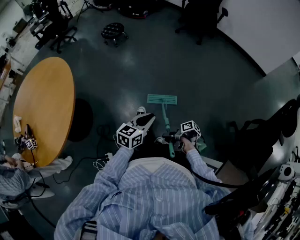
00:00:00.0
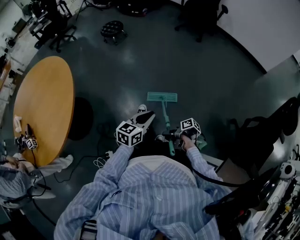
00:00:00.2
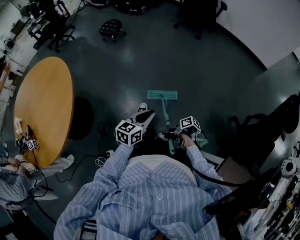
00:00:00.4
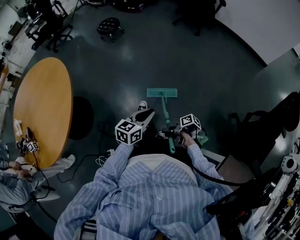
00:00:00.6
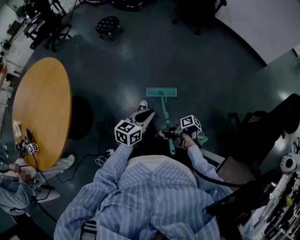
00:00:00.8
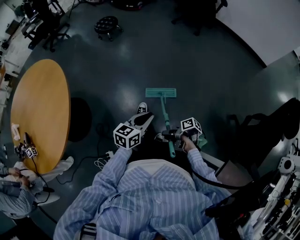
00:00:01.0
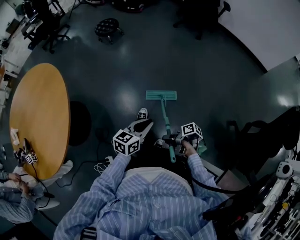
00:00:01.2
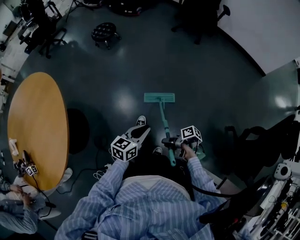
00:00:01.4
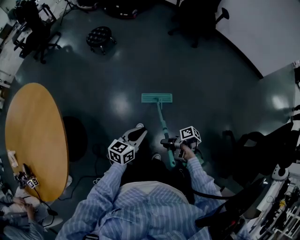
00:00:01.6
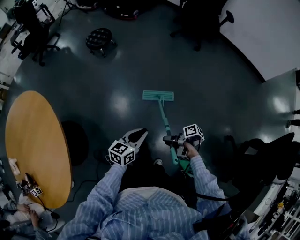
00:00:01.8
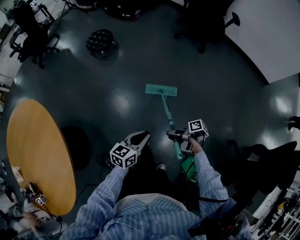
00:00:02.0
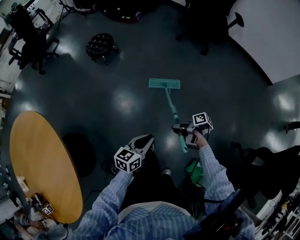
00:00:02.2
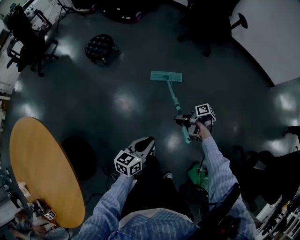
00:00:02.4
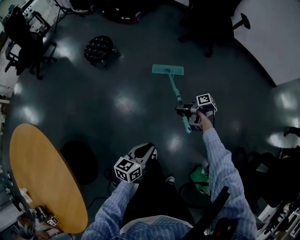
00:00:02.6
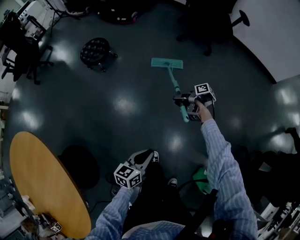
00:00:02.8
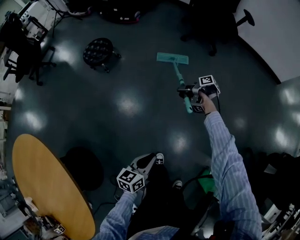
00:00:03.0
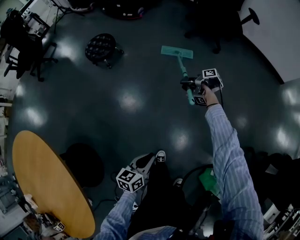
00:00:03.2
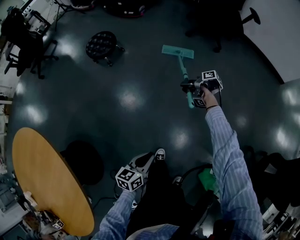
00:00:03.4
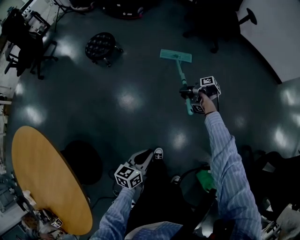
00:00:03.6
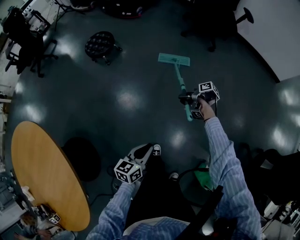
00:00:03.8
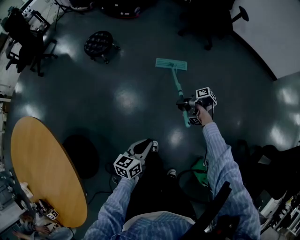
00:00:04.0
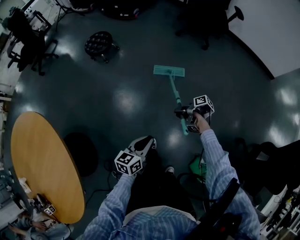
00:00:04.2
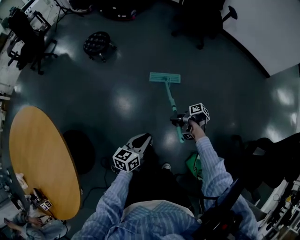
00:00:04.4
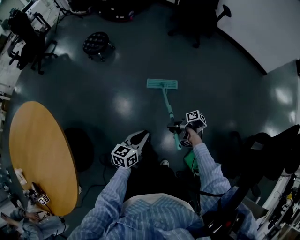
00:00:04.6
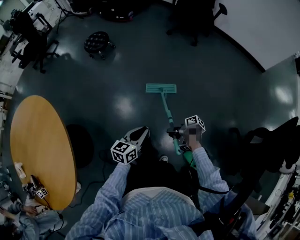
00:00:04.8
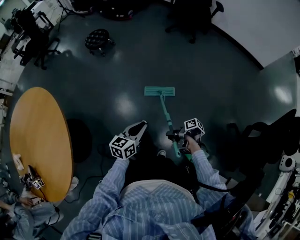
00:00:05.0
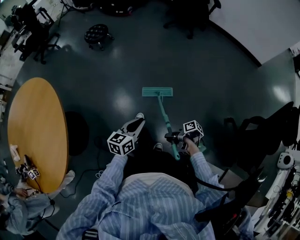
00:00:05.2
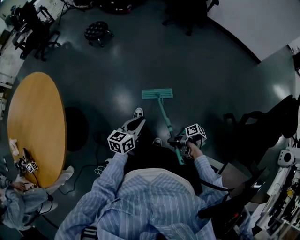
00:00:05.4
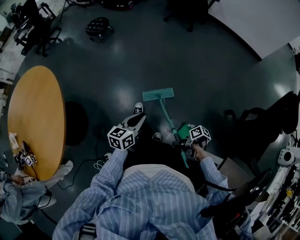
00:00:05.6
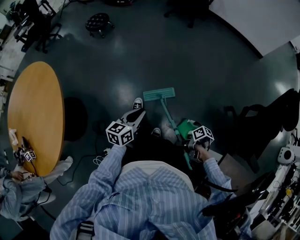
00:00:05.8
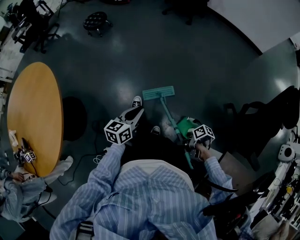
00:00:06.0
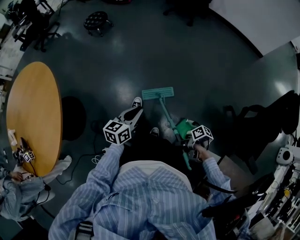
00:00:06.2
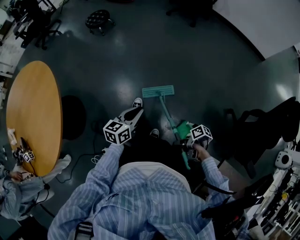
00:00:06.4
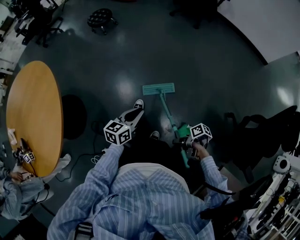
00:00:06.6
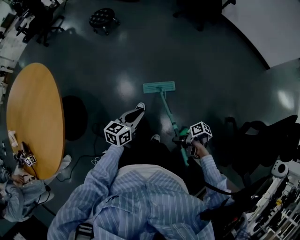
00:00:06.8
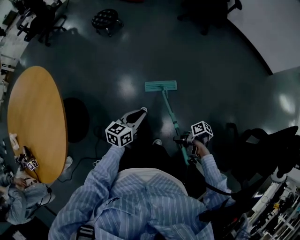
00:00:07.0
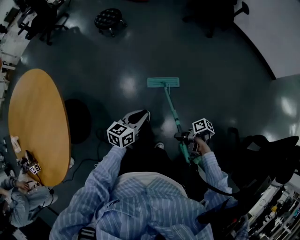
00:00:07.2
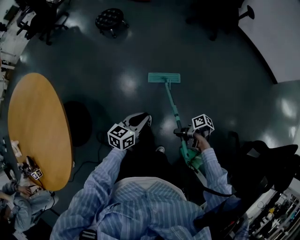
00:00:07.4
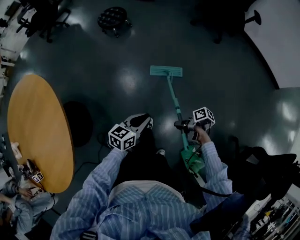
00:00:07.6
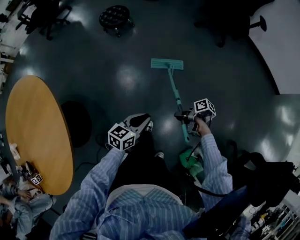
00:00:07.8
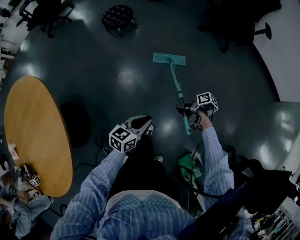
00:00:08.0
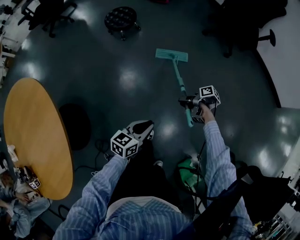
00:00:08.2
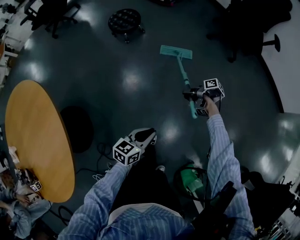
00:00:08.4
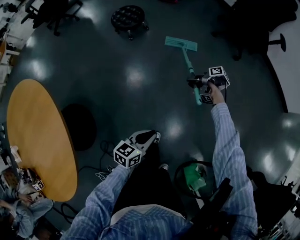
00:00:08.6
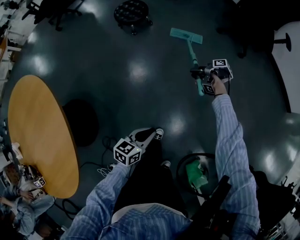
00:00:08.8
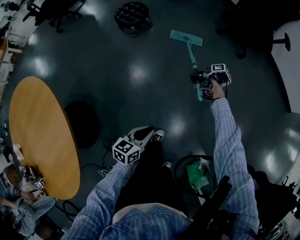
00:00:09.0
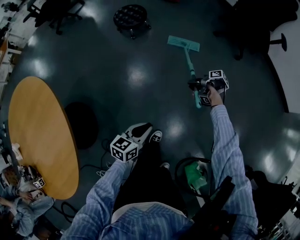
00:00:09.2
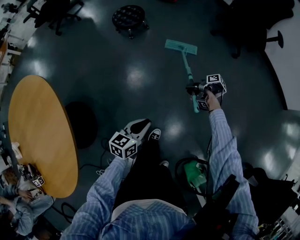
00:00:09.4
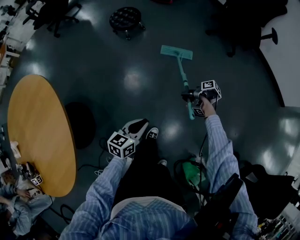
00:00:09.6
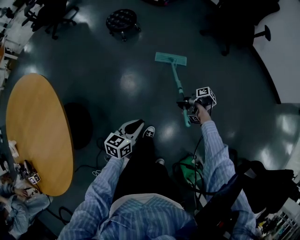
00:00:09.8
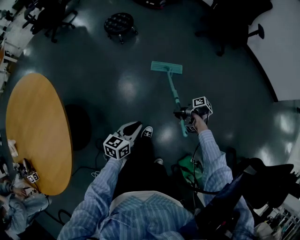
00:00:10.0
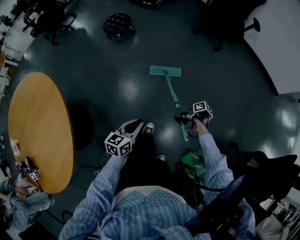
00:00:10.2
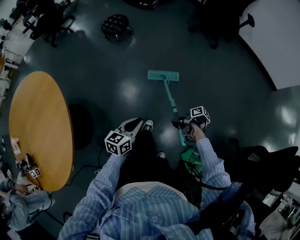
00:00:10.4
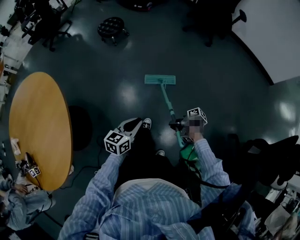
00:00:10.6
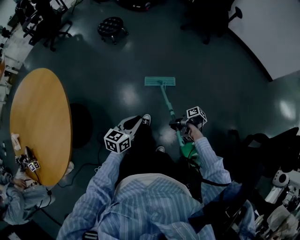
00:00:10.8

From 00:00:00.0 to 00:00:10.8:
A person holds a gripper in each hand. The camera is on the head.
From 00:00:00.0 to 00:00:01.6: The left gripper changes place by roughly 20 cm.
From 00:00:01.6 to 00:00:03.0: The left gripper changes place by roughly 25 cm.
From 00:00:03.0 to 00:00:04.6: The left gripper moves roughly 20 cm.
From 00:00:04.6 to 00:00:06.2: The left gripper moves some 20 cm.
From 00:00:06.2 to 00:00:07.8: The left gripper ends up roughly 35 cm from where it was.
From 00:00:07.8 to 00:00:09.2: The left gripper shifts by some 10 cm.
From 00:00:09.2 to 00:00:10.8: The left gripper changes place by some 30 cm.

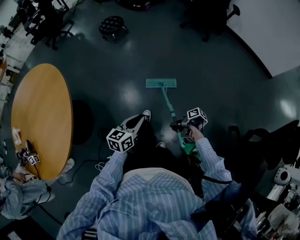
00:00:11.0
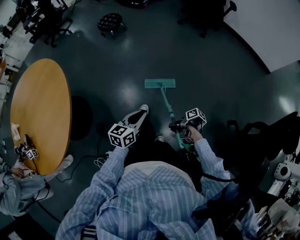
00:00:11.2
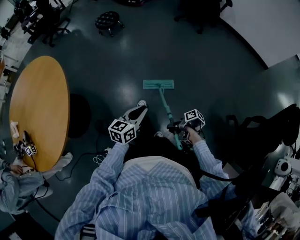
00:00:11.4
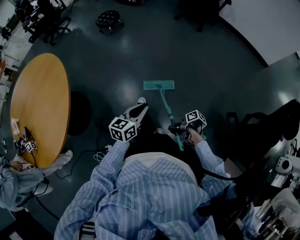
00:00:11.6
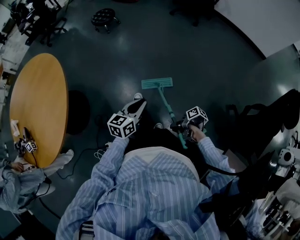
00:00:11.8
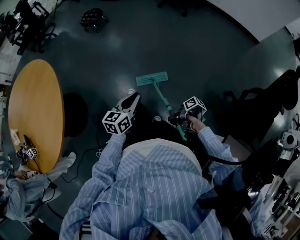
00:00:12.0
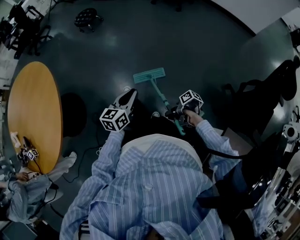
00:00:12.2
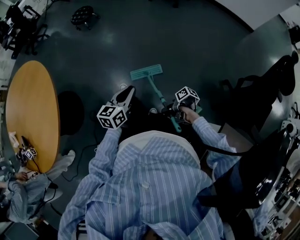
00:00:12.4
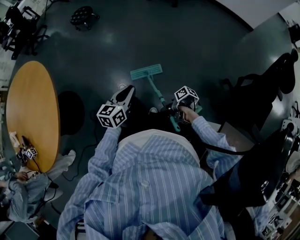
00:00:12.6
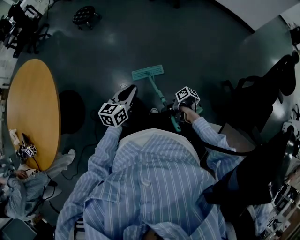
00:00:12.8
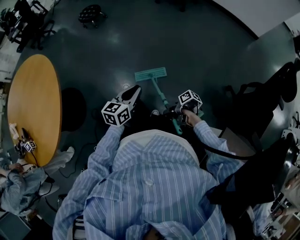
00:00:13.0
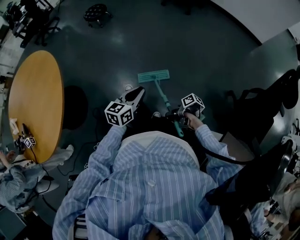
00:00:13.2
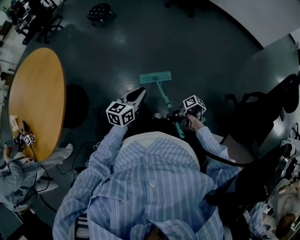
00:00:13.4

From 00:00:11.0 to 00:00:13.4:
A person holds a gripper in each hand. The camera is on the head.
From 00:00:11.0 to 00:00:12.2: The left gripper shifts by roughly 15 cm.

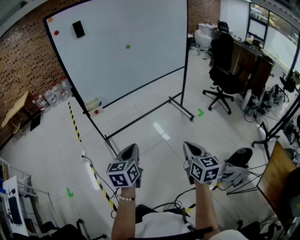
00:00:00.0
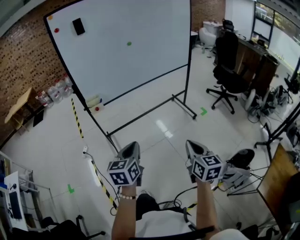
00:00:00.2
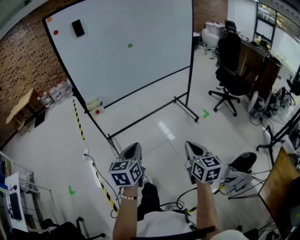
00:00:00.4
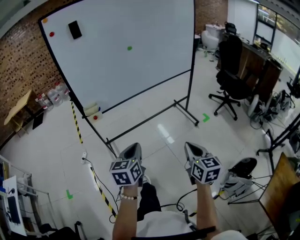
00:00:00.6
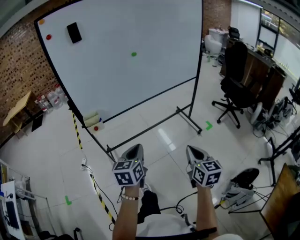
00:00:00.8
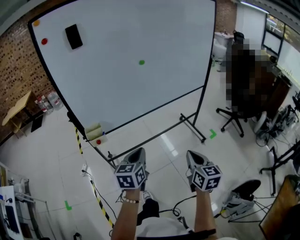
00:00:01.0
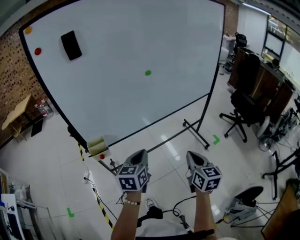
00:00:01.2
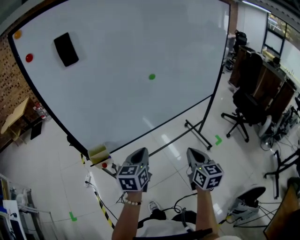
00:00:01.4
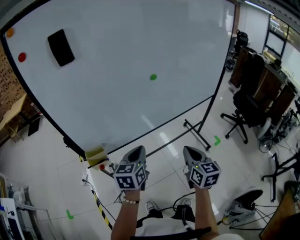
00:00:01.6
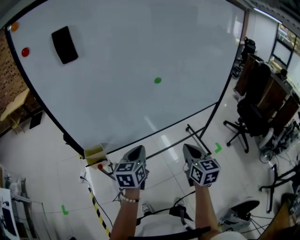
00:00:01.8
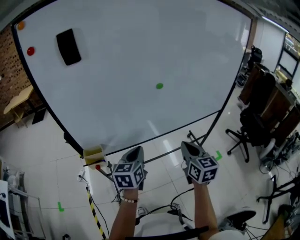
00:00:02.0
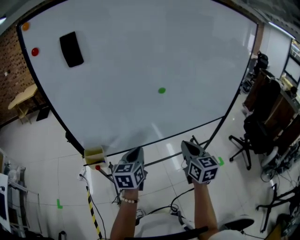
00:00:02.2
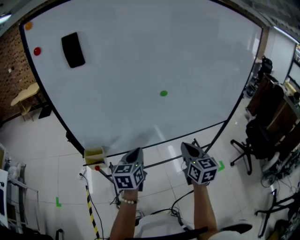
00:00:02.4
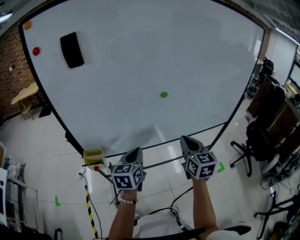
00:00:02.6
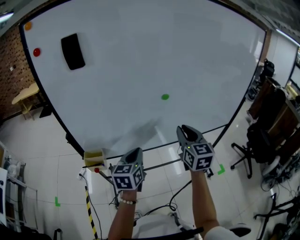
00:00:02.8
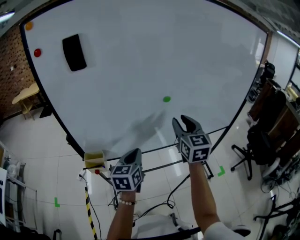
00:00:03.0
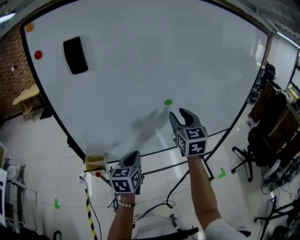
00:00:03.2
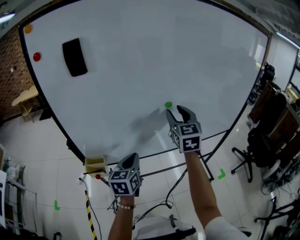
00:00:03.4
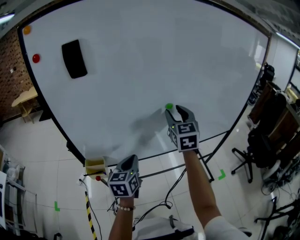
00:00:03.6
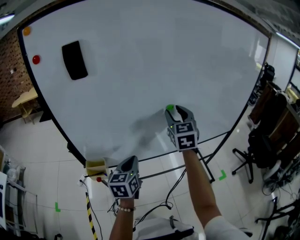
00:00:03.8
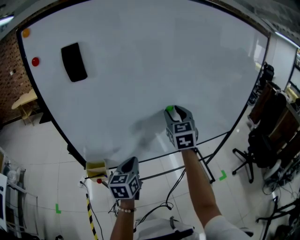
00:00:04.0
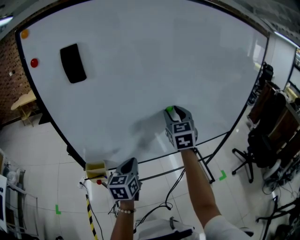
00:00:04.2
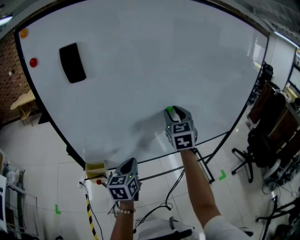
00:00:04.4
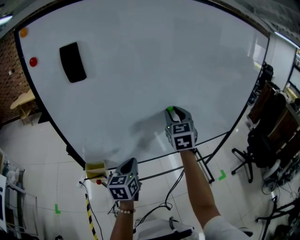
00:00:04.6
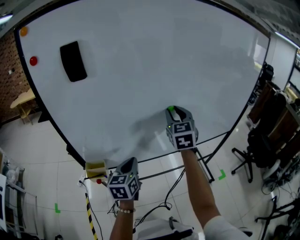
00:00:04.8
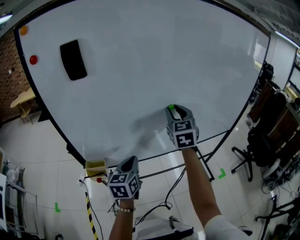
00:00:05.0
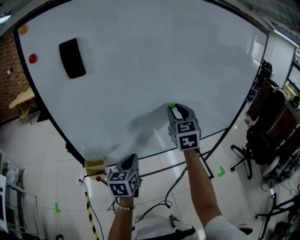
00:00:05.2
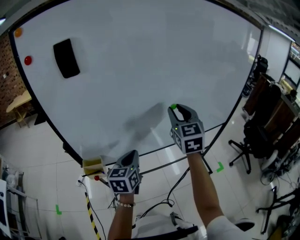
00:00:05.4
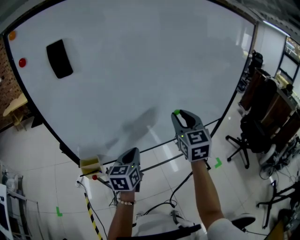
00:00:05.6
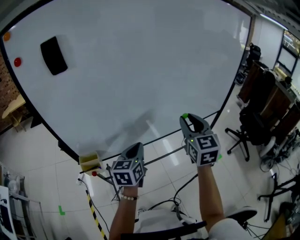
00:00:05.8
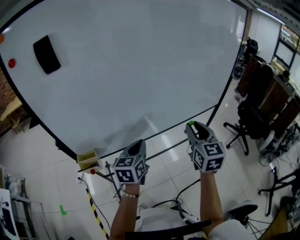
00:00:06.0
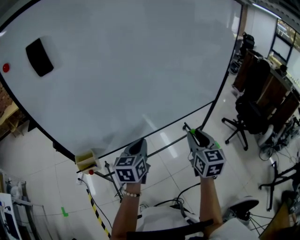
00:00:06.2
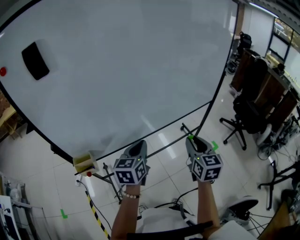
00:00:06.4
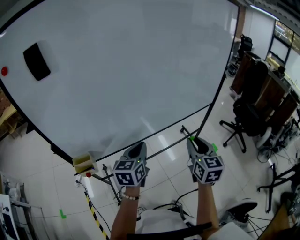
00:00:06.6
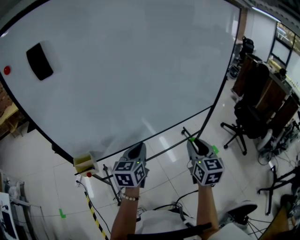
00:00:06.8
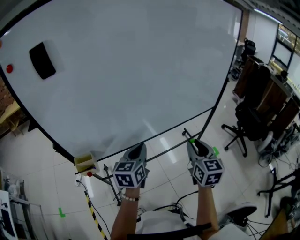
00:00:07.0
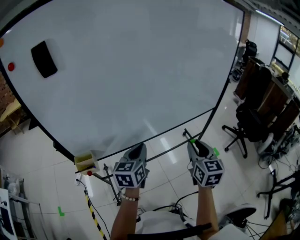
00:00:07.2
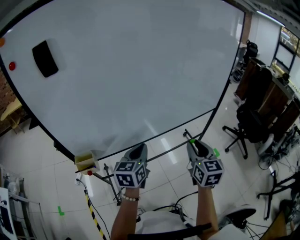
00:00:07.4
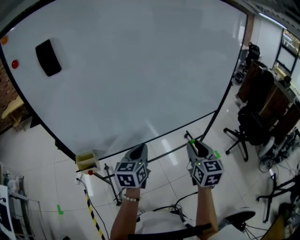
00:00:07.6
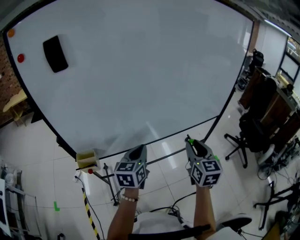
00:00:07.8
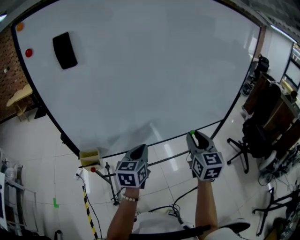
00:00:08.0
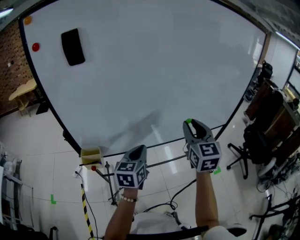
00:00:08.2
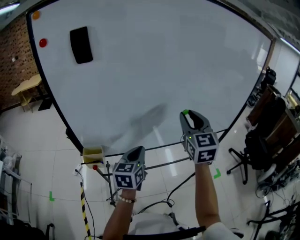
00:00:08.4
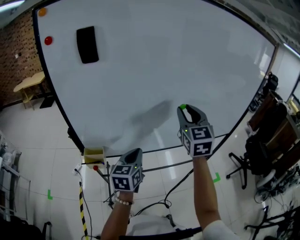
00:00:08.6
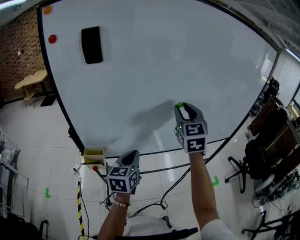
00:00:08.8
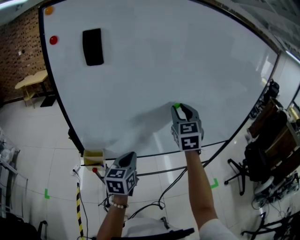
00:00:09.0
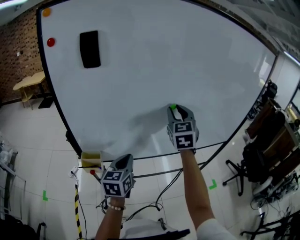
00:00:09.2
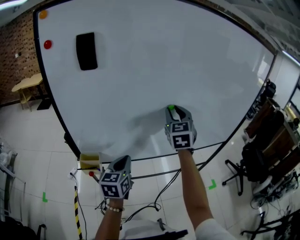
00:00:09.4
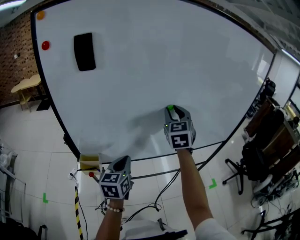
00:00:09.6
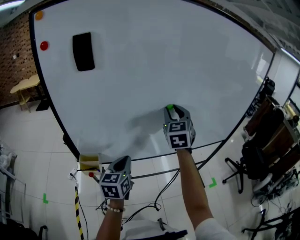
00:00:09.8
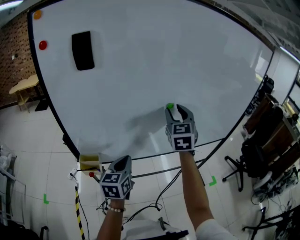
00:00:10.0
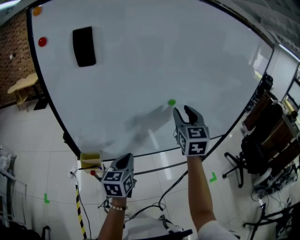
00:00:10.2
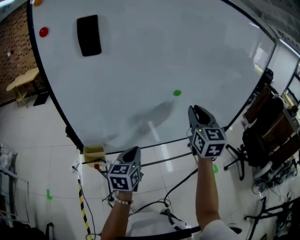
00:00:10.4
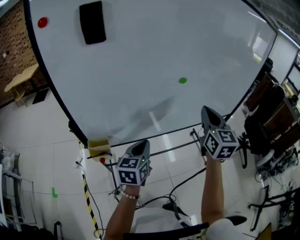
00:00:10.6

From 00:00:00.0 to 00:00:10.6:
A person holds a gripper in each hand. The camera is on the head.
From 00:00:00.0 to 00:00:01.6: Both grippers are carried forward, roughly 50 cm.
From 00:00:01.6 to 00:00:03.0: The left gripper heads forward, covering approximately 5 cm; the right gripper shifts some 25 cm forward and upward, rotates some 20 degrees, and opens its fingers.
From 00:00:03.0 to 00:00:04.6: The right gripper moves forward, approximately 10 cm.
From 00:00:04.6 to 00:00:06.0: The left gripper goes roughly 10 cm to the right. Meanwhile the right gripper heads backward and to the right, covering approximately 20 cm.
From 00:00:06.0 to 00:00:07.6: The right gripper shifts by some 5 cm.
From 00:00:07.6 to 00:00:09.0: The left gripper moves to the left, approximately 10 cm. Meanwhile the right gripper is displaced to the left, forward and upward by roughly 30 cm, and rotates roughly 30 degrees.
From 00:00:09.0 to 00:00:10.6: The right gripper moves backward and to the right, roughly 10 cm, and closes.
